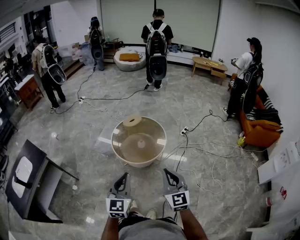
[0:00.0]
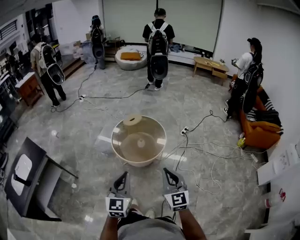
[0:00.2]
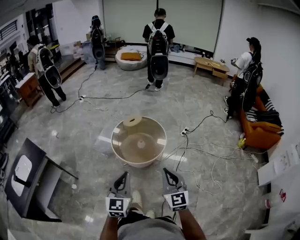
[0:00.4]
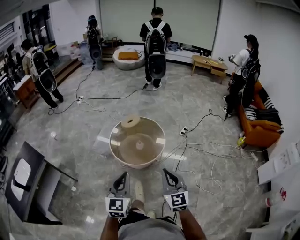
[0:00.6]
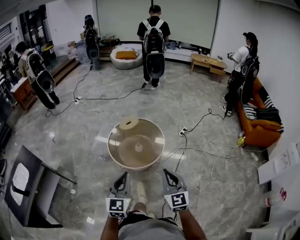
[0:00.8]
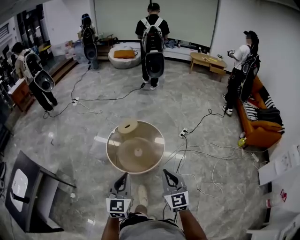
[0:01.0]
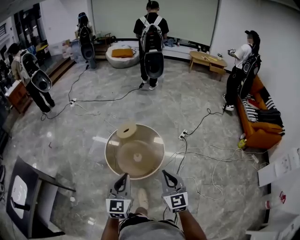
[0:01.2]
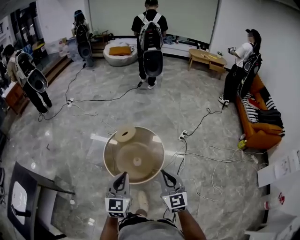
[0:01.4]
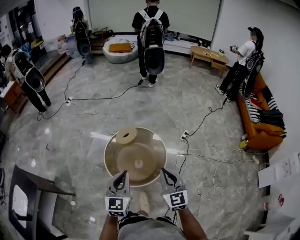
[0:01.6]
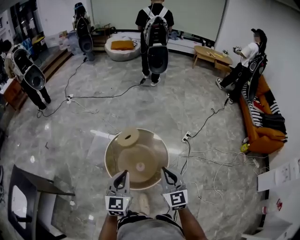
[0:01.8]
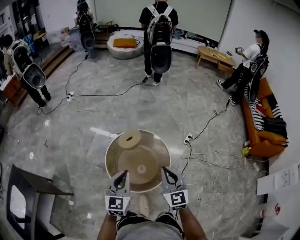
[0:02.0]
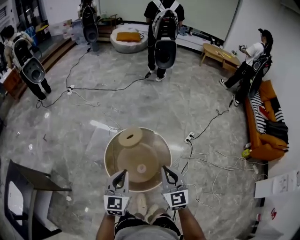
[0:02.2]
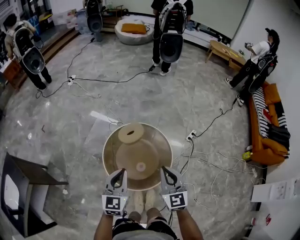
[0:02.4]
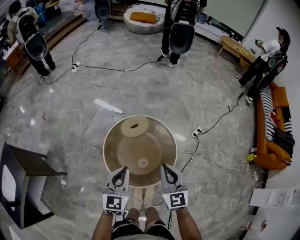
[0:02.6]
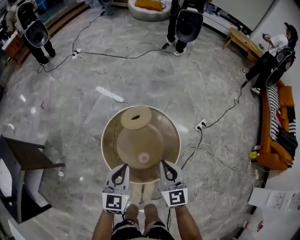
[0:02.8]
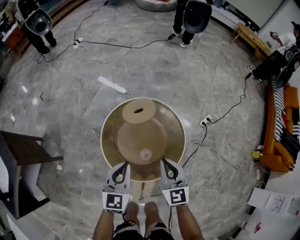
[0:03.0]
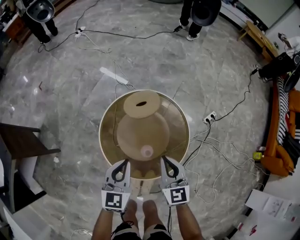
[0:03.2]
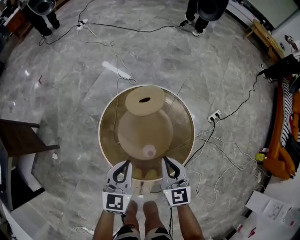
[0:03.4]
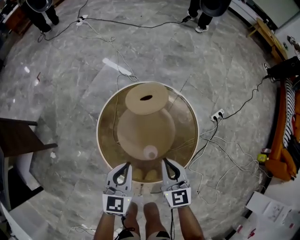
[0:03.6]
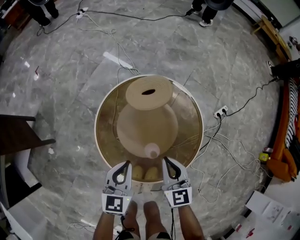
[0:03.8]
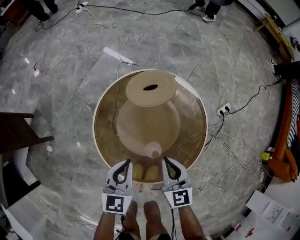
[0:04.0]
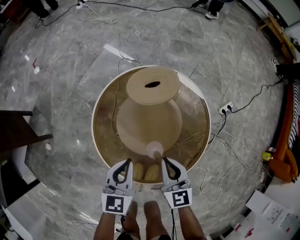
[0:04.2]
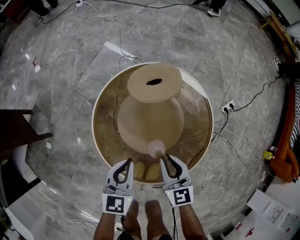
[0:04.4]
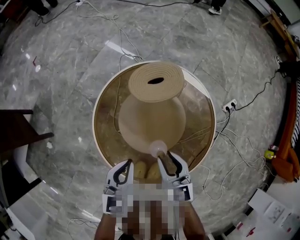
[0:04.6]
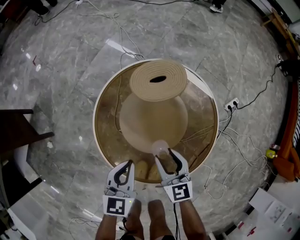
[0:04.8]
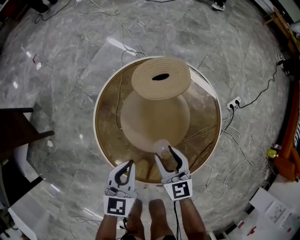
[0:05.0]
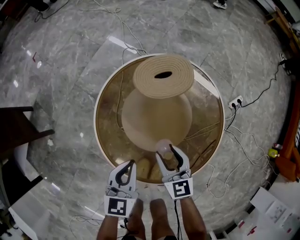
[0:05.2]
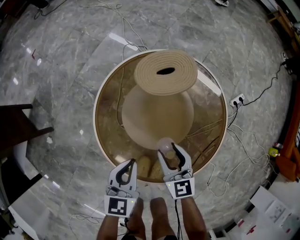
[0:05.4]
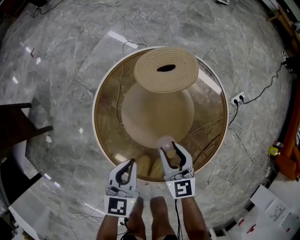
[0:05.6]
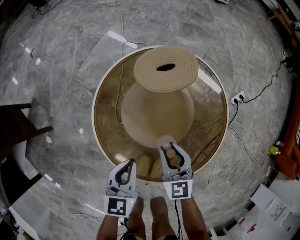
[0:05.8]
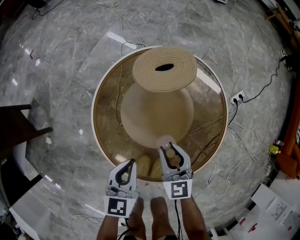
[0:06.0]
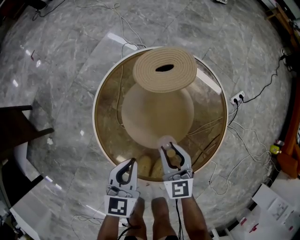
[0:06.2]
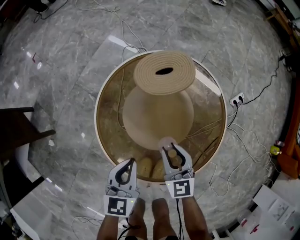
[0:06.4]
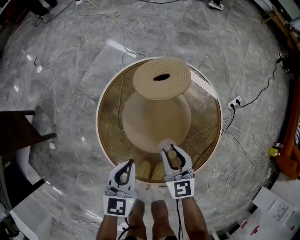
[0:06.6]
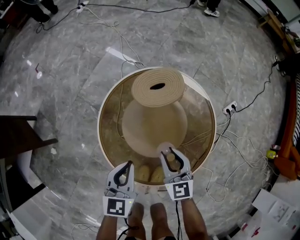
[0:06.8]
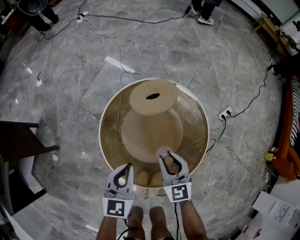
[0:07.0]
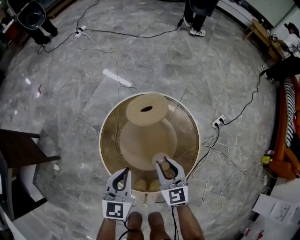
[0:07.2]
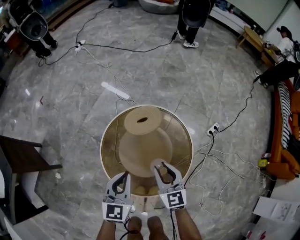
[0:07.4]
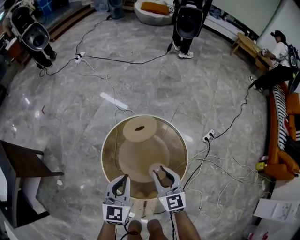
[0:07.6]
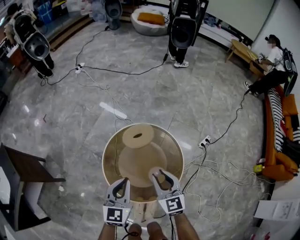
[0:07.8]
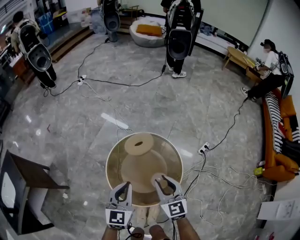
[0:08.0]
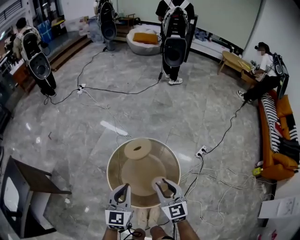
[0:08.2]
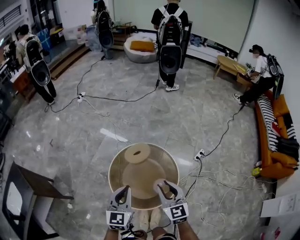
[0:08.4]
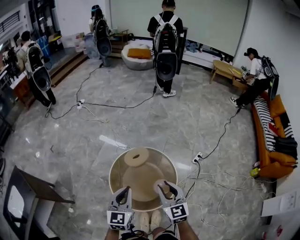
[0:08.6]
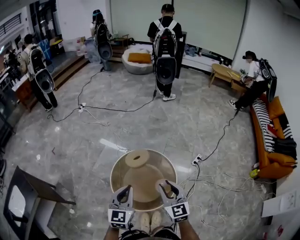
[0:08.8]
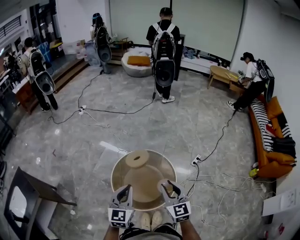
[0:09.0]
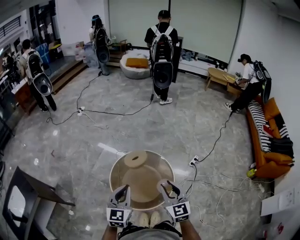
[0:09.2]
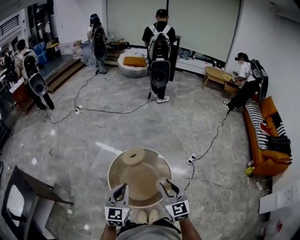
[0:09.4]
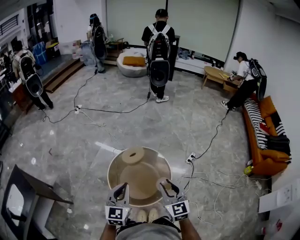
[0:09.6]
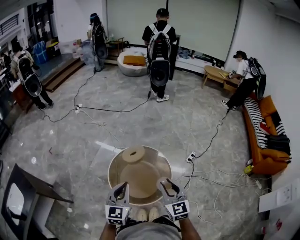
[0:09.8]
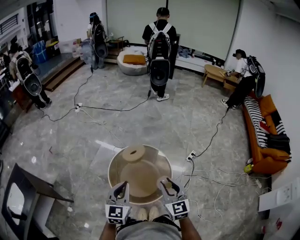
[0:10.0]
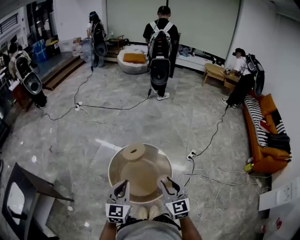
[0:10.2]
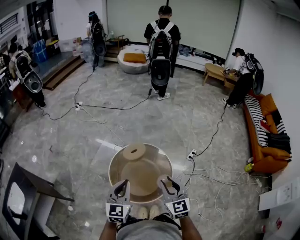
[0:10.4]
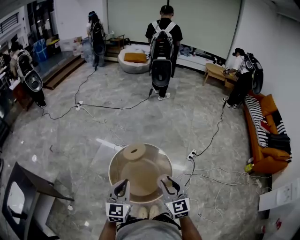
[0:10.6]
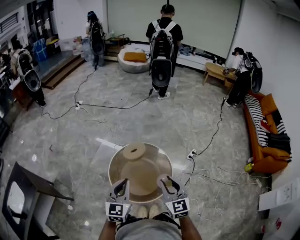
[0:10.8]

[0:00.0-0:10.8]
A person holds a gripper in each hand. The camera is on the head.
0.0 to 1.6 s: Both grippers move forward, roughly 35 cm.
1.6 to 3.0 s: Both grippers move downward and forward, some 30 cm.
3.0 to 4.6 s: Both grippers move downward, roughly 30 cm. The right gripper opens up.
4.6 to 6.2 s: The right gripper is displaced downward by about 5 cm.
6.2 to 7.8 s: Both grippers travel together upward, some 35 cm. The left gripper rotates about 20 degrees.
7.8 to 9.2 s: The grippers both shift upward and backward by some 25 cm.
9.2 to 10.8 s: The grippers make only small movements.

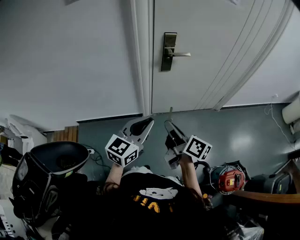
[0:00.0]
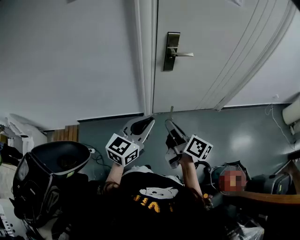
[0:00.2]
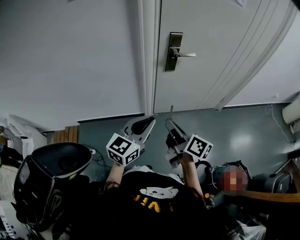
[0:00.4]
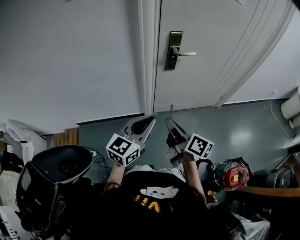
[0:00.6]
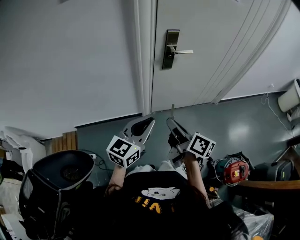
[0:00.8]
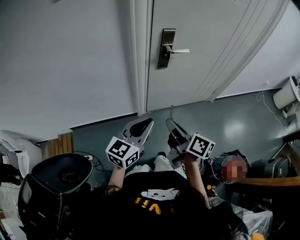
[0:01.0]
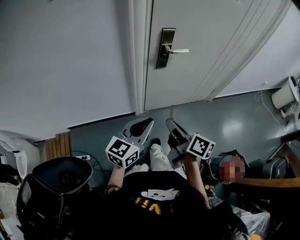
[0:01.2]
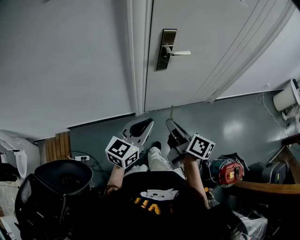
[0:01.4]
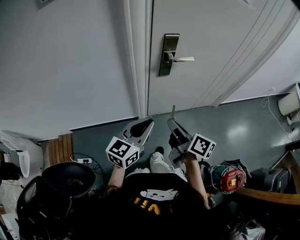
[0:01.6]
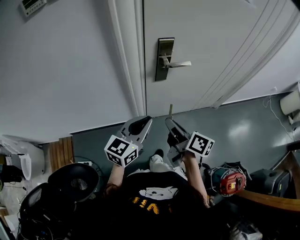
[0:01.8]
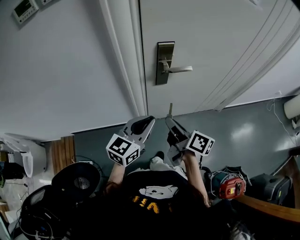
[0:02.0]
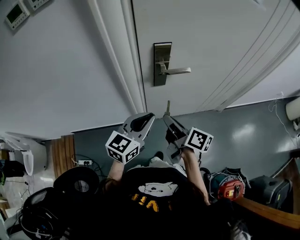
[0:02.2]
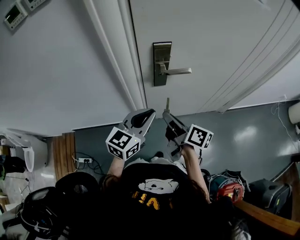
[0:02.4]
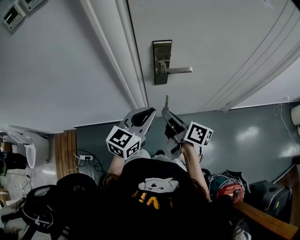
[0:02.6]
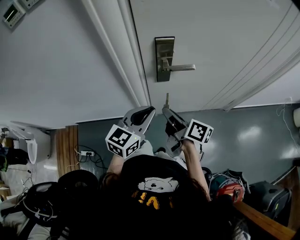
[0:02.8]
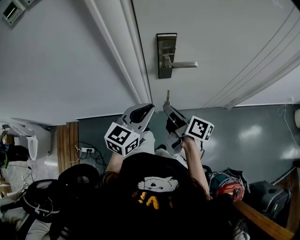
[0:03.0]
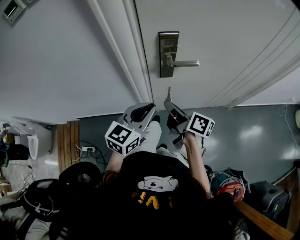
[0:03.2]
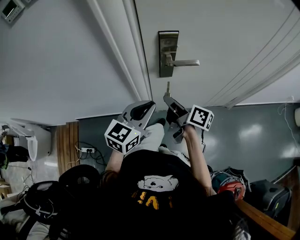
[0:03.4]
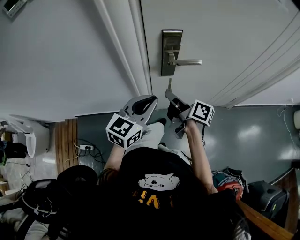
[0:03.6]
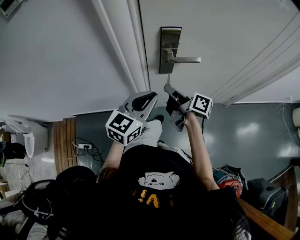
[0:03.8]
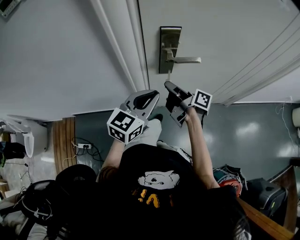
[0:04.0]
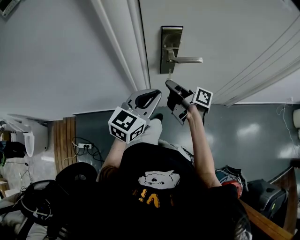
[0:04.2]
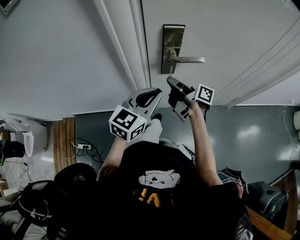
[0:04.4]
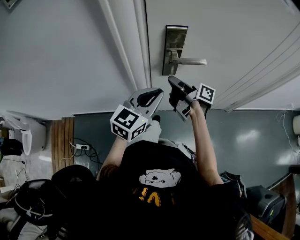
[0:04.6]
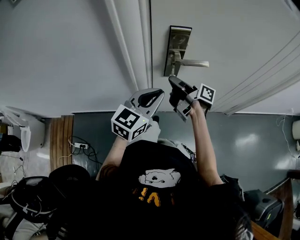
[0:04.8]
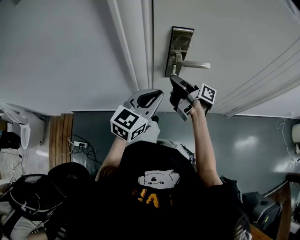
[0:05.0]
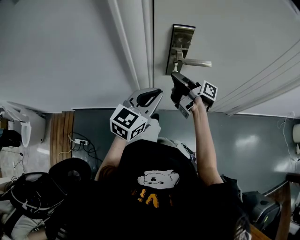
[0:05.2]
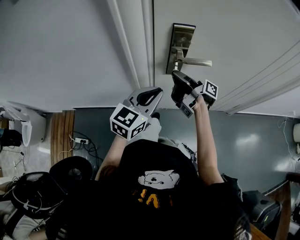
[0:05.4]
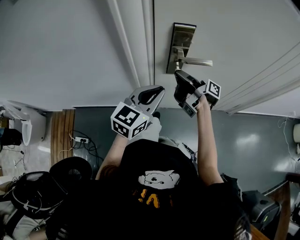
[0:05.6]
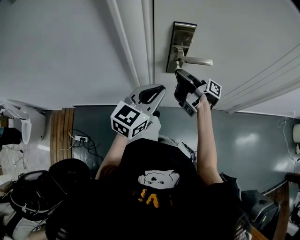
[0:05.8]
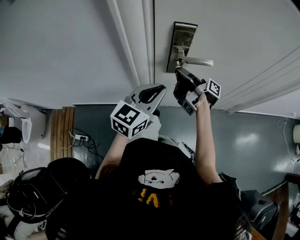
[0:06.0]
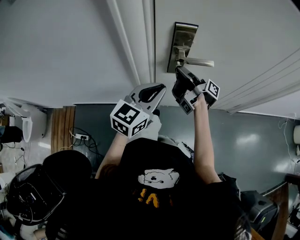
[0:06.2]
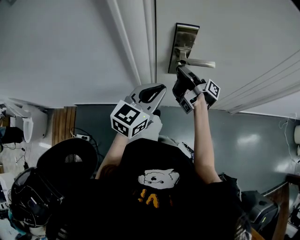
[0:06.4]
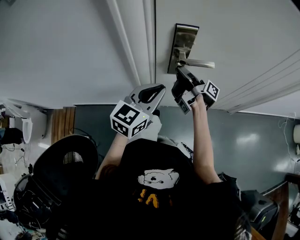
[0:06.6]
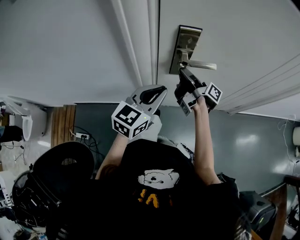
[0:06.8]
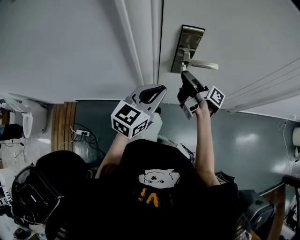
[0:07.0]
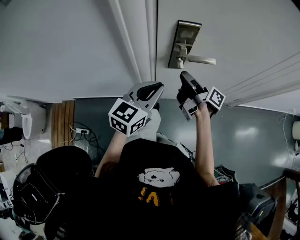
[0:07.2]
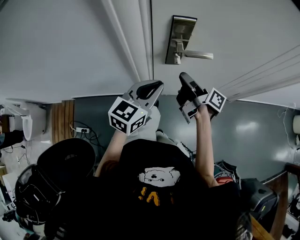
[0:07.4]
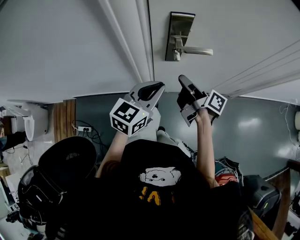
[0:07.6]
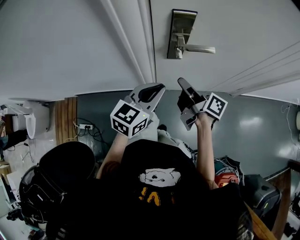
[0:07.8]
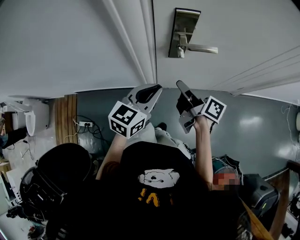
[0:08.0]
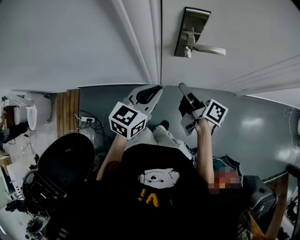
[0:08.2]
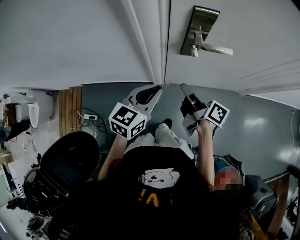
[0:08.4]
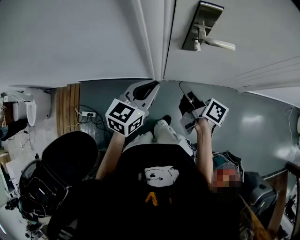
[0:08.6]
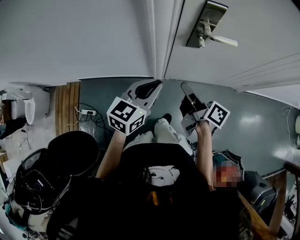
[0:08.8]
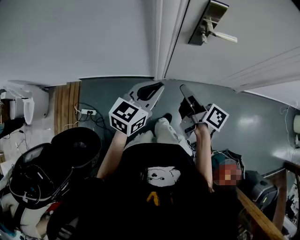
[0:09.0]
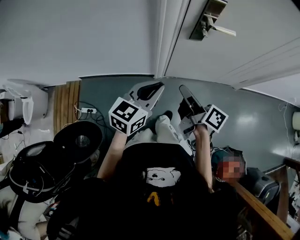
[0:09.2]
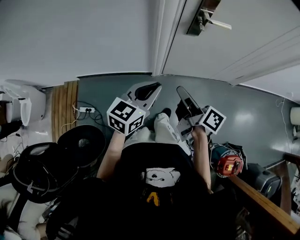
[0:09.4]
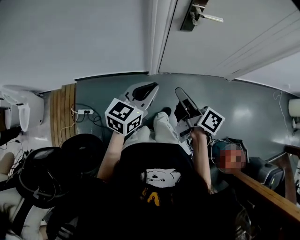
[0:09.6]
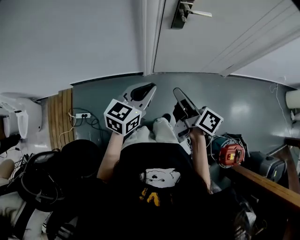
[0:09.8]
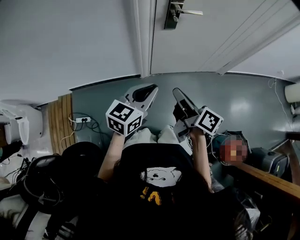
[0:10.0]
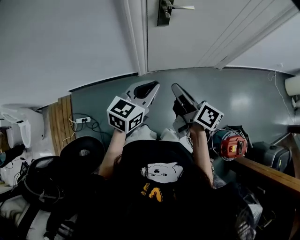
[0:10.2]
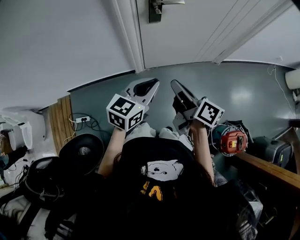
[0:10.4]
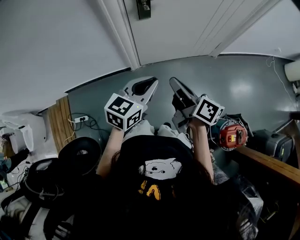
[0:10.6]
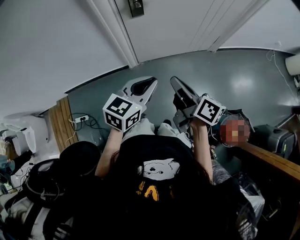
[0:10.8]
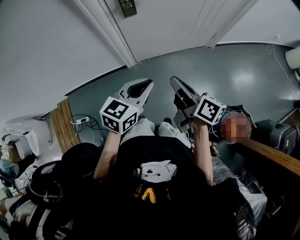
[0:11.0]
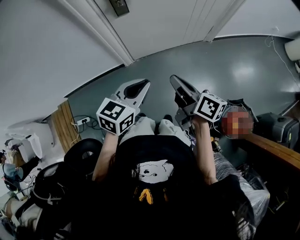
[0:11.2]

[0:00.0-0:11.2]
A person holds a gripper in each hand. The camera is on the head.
0.0 to 1.6 s: The left gripper moves about 15 cm.
1.6 to 3.2 s: The left gripper shifts by roughly 15 cm.
3.2 to 4.8 s: The left gripper changes place by some 5 cm.
8.0 to 9.6 s: The left gripper shifts by approximately 25 cm.
9.6 to 11.2 s: The left gripper ends up about 20 cm from where it was.

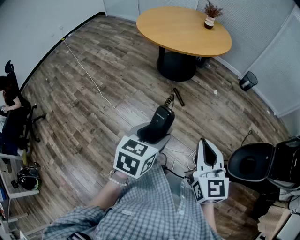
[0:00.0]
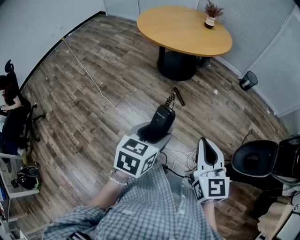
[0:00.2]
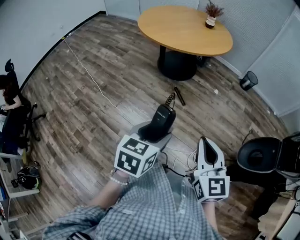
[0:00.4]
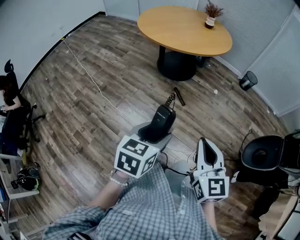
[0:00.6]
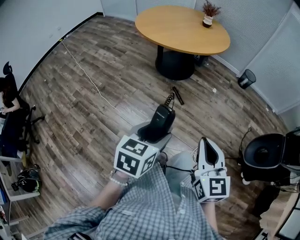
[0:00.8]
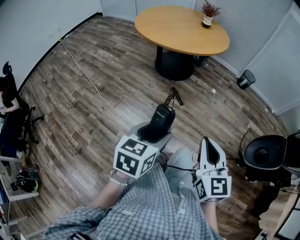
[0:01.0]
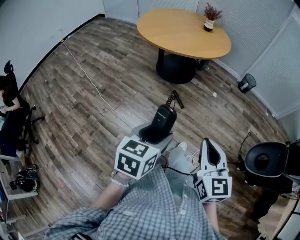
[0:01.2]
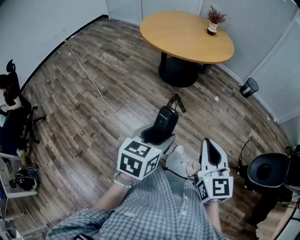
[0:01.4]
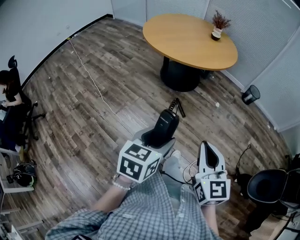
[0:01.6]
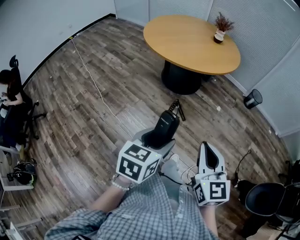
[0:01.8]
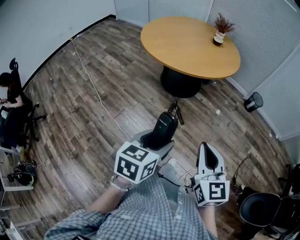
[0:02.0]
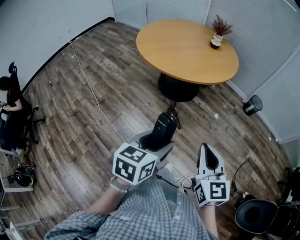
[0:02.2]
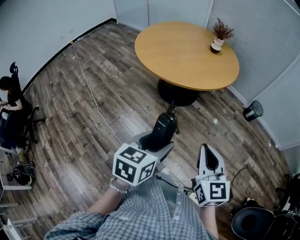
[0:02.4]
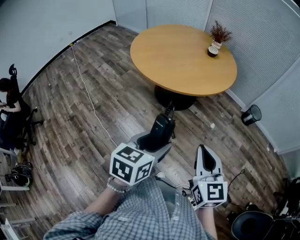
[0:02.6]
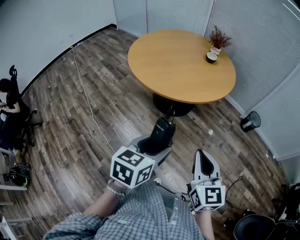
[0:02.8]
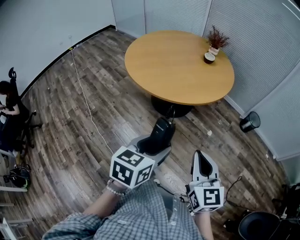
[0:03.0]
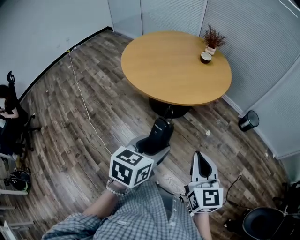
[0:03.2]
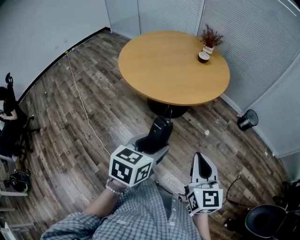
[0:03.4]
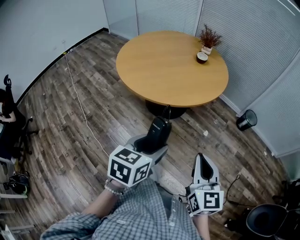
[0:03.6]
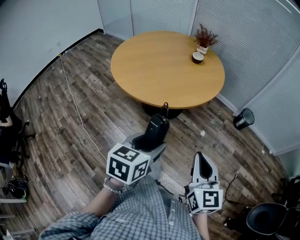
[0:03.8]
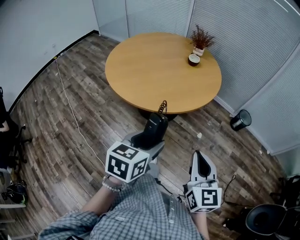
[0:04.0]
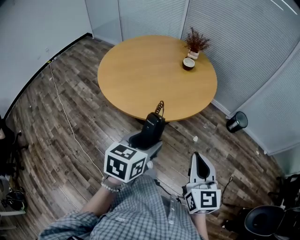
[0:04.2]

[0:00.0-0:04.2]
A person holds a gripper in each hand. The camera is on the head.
0.0 to 1.4 s: The grippers make only small movements.
1.4 to 2.8 s: The right gripper moves forward, some 30 cm; the left gripper travels forward and to the right by roughly 30 cm.
2.8 to 4.2 s: Both grippers travel together forward, about 15 cm.
